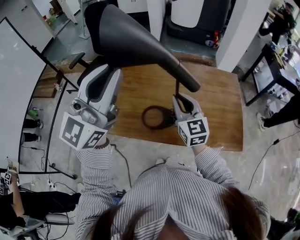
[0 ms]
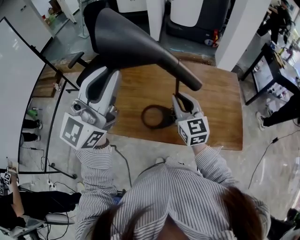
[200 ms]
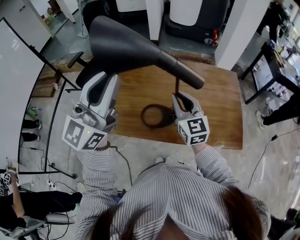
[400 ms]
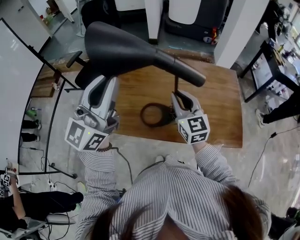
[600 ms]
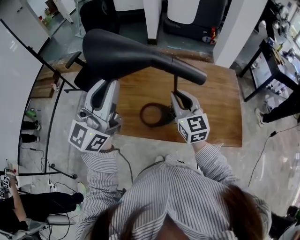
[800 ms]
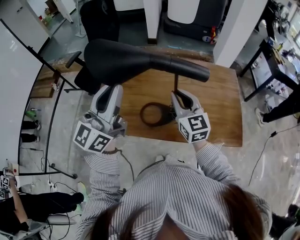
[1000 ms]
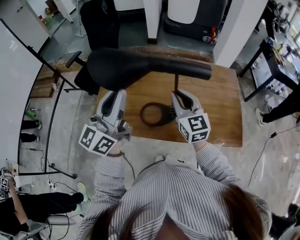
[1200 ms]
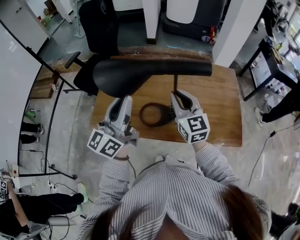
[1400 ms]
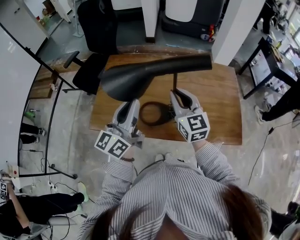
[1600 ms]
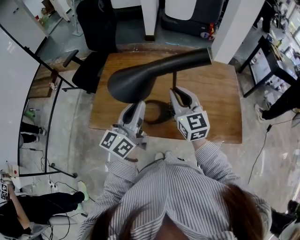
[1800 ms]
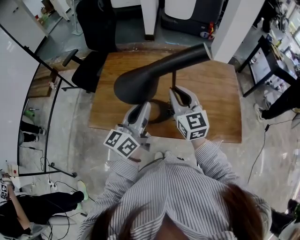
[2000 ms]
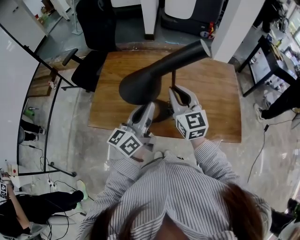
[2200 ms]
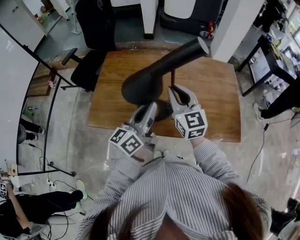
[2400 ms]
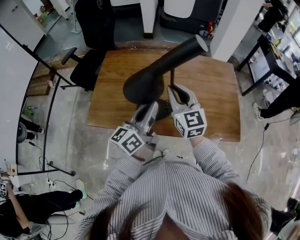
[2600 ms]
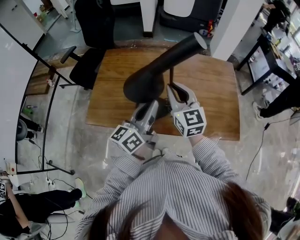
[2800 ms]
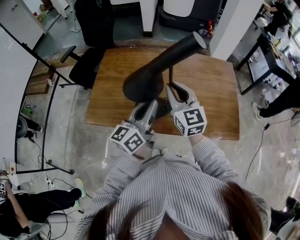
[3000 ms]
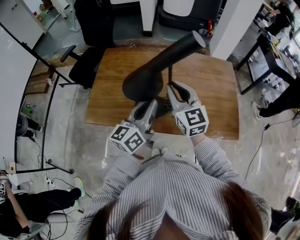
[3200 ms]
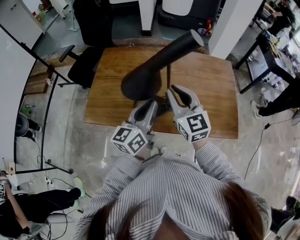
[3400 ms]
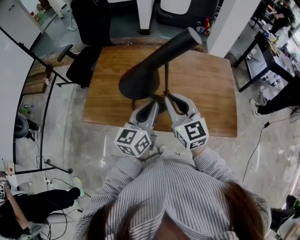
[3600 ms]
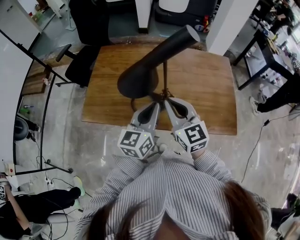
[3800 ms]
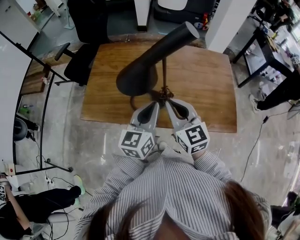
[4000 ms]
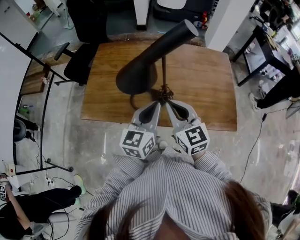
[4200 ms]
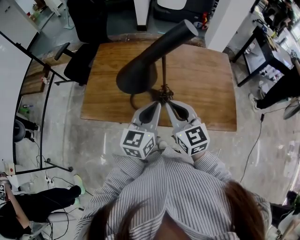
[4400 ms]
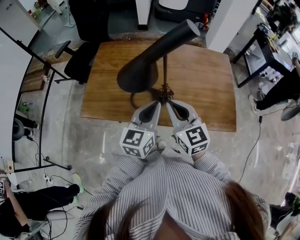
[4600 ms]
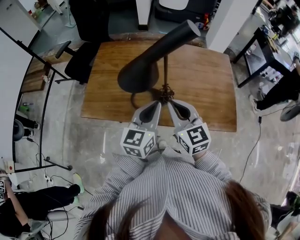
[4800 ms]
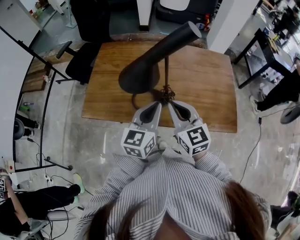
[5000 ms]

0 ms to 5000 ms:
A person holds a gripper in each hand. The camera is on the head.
0 ms to 1600 ms: The left gripper heads downward, covering about 20 cm, and changes its angle by roughly 40 degrees.
1600 ms to 3400 ms: The left gripper travels to the right and downward by roughly 10 cm.
3400 ms to 5000 ms: The right gripper heads backward, covering about 5 cm.

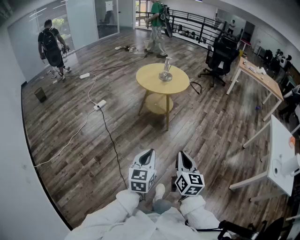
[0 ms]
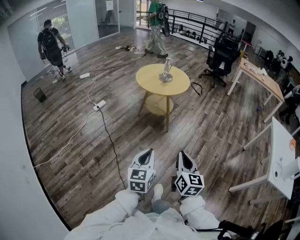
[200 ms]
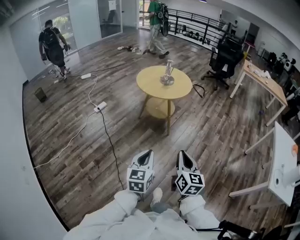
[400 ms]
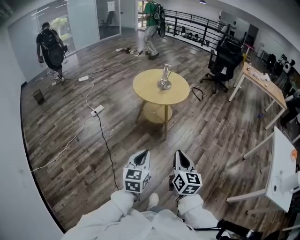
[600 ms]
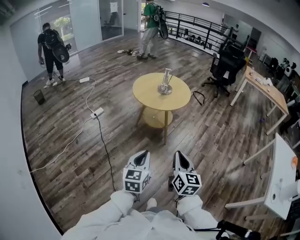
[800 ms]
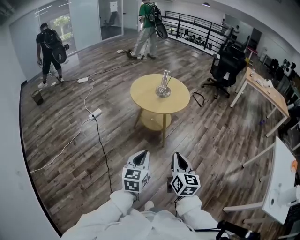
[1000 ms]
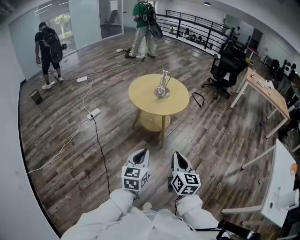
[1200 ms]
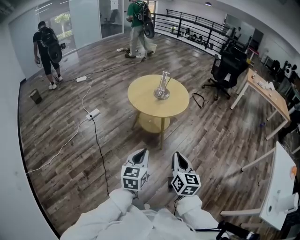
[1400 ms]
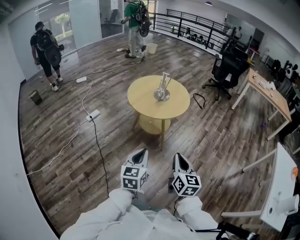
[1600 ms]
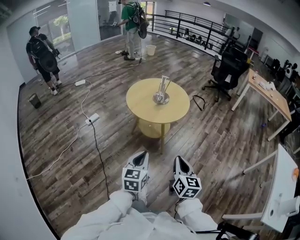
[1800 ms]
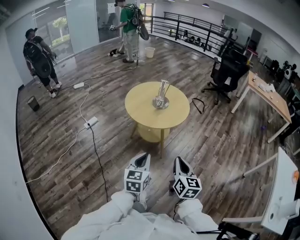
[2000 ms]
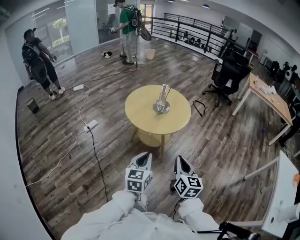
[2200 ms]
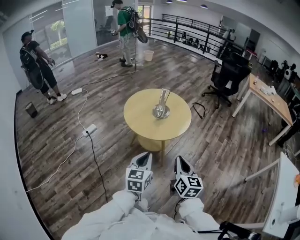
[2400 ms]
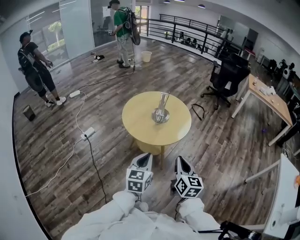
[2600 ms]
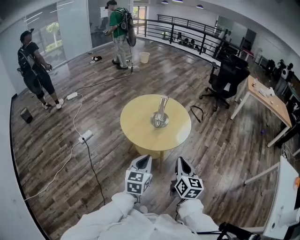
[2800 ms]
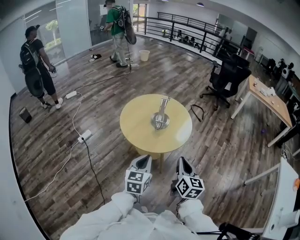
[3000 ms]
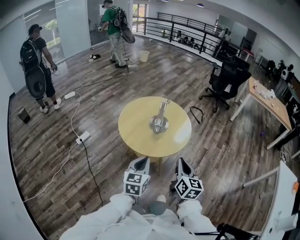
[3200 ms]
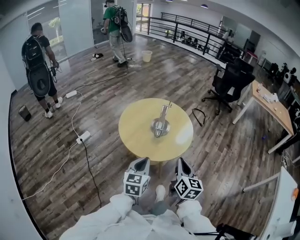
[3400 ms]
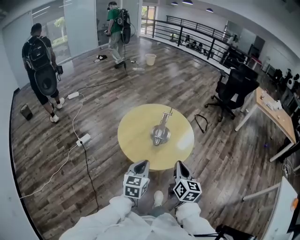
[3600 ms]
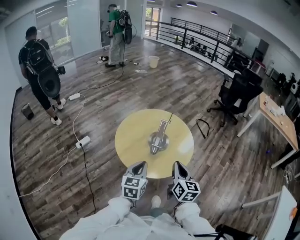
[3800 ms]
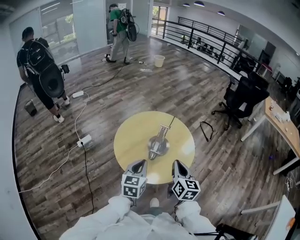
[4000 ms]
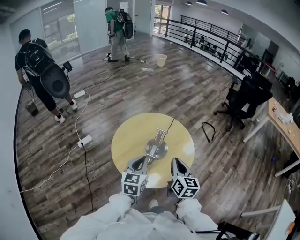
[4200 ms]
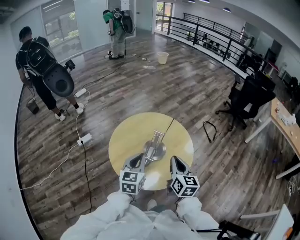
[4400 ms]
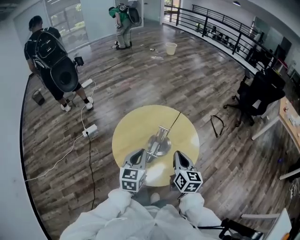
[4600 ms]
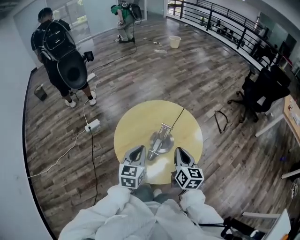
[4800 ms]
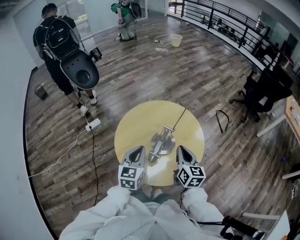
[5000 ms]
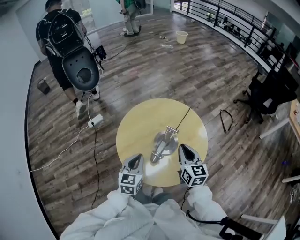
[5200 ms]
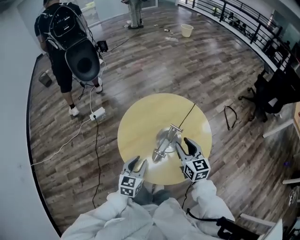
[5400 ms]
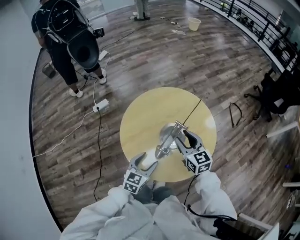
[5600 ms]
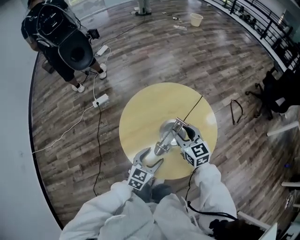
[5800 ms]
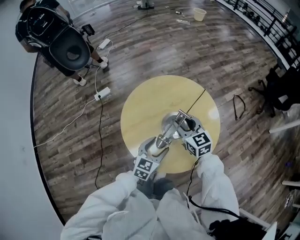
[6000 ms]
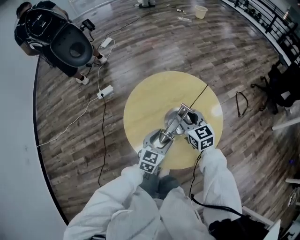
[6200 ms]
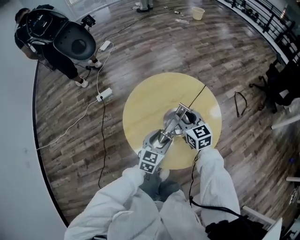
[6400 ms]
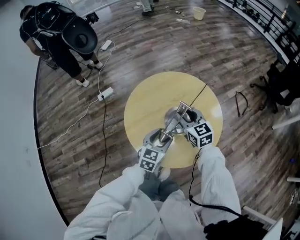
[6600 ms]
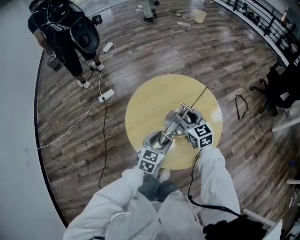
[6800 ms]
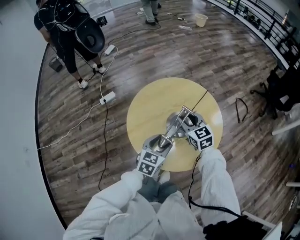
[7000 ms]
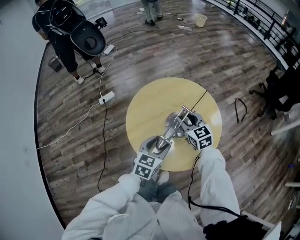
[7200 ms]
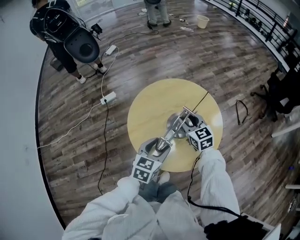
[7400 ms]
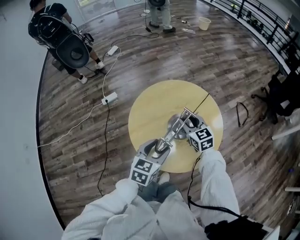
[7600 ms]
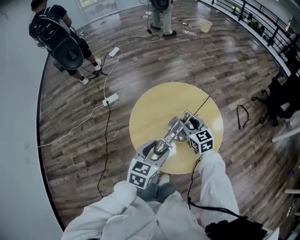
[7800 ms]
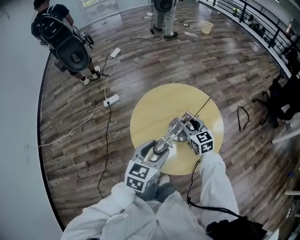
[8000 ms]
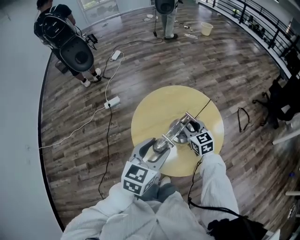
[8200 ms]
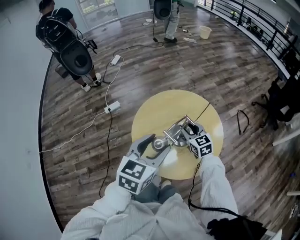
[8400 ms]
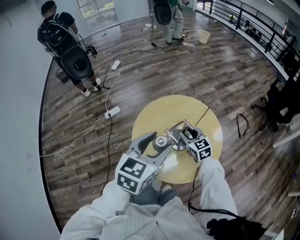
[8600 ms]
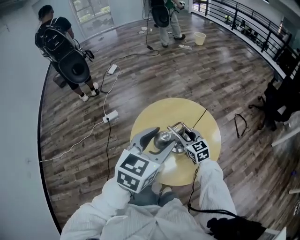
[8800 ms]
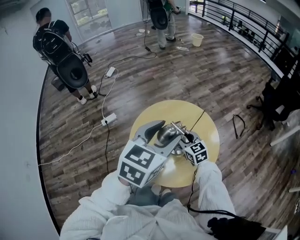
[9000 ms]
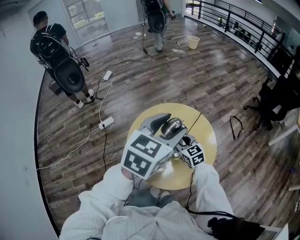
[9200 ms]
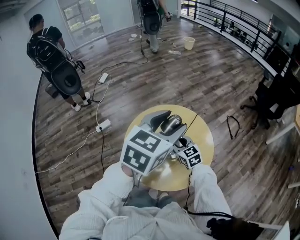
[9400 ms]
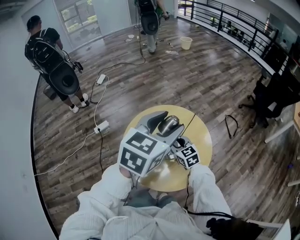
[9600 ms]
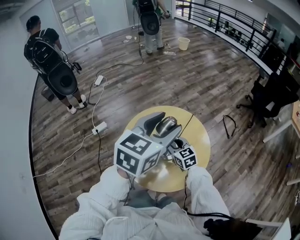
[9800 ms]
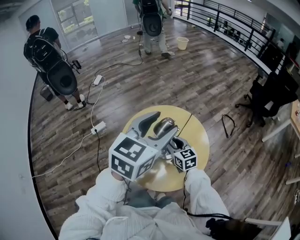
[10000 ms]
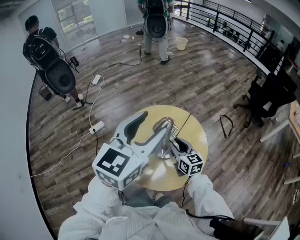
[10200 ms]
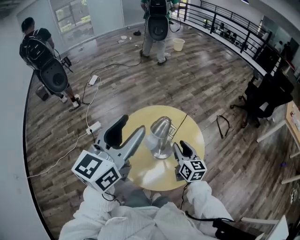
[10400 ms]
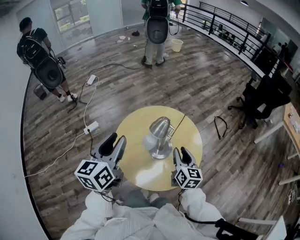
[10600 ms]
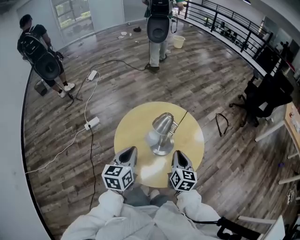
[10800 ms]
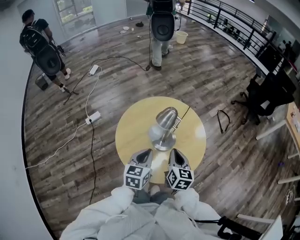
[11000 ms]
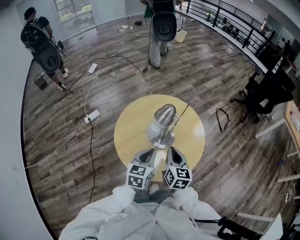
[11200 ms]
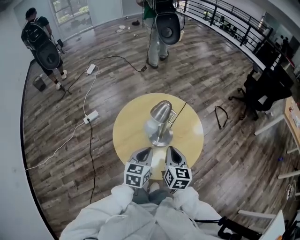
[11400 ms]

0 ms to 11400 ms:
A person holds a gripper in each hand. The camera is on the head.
0 ms to 1400 ms: Both grippers move forward, about 30 cm.
1400 ms to 2800 ms: The grippers both shift forward by about 25 cm.
2800 ms to 4200 ms: The two grippers go roughly 30 cm forward.
4200 ms to 5600 ms: The right gripper travels forward and downward by about 20 cm, rotates roughly 40 degrees, and opens; the left gripper heads downward, covering roughly 15 cm, and opens its fingers.
5600 ms to 7200 ms: The left gripper ends up approximately 5 cm from where it was.
7200 ms to 8600 ms: The left gripper is displaced upward by roughly 20 cm.
8600 ms to 10000 ms: The left gripper heads upward, to the right and forward, covering about 15 cm.
10000 ms to 11400 ms: The right gripper heads backward, covering about 10 cm, changes its angle by about 30 degrees, and closes up. The left gripper shifts about 25 cm downward, turns by about 20 degrees, and closes.

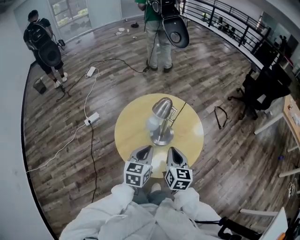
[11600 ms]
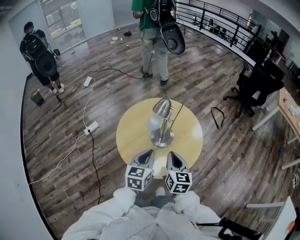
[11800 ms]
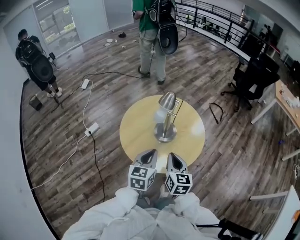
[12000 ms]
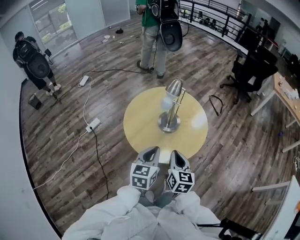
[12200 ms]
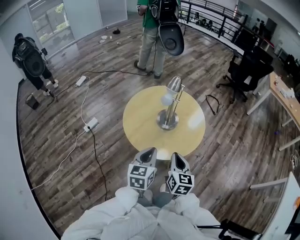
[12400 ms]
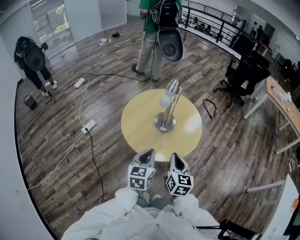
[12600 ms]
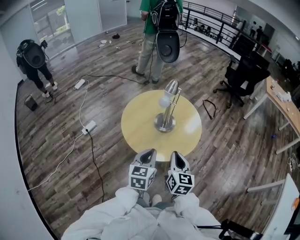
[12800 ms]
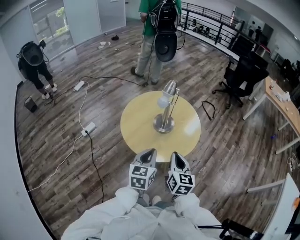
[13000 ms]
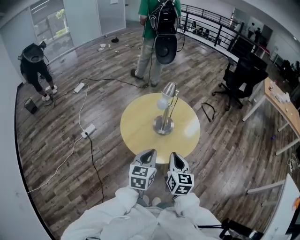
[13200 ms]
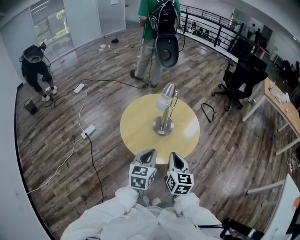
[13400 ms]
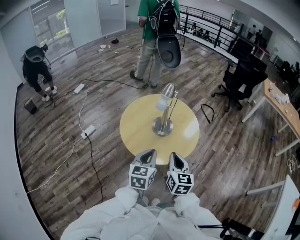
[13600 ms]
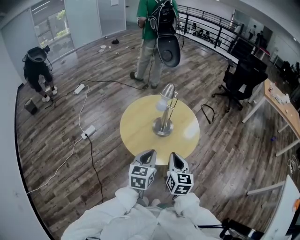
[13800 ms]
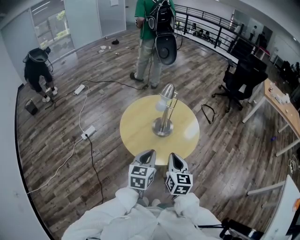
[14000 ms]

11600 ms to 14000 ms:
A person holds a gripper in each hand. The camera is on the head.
11600 ms to 12800 ms: Both grippers travel together backward, roughly 15 cm.
12800 ms to 14000 ms: The grippers stay close to where they were, moving slightly.

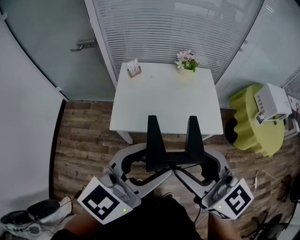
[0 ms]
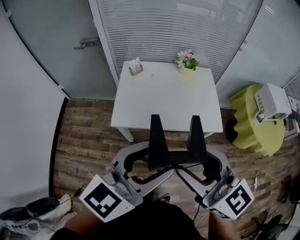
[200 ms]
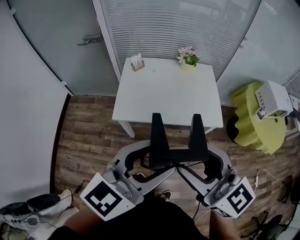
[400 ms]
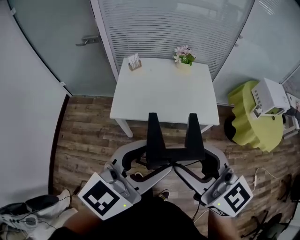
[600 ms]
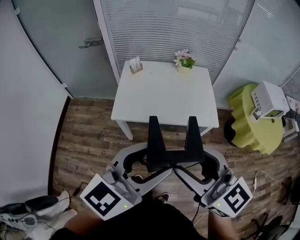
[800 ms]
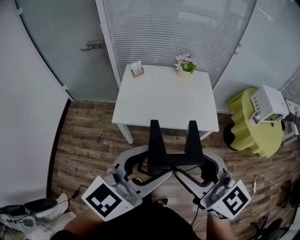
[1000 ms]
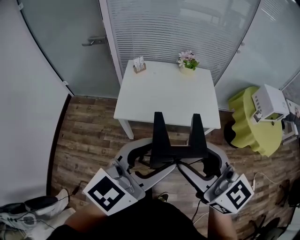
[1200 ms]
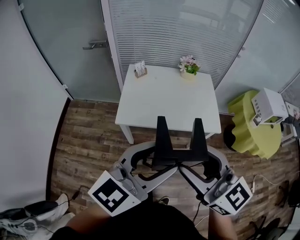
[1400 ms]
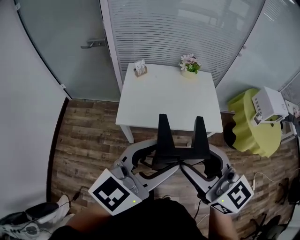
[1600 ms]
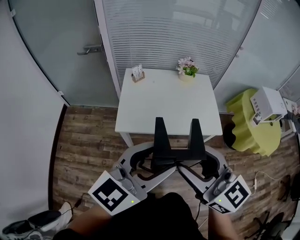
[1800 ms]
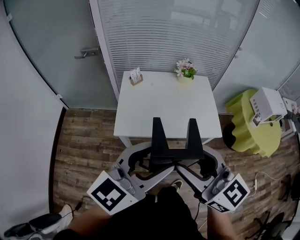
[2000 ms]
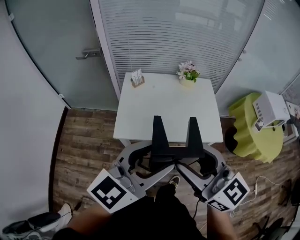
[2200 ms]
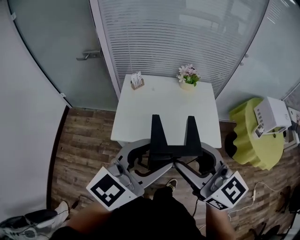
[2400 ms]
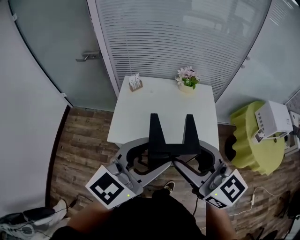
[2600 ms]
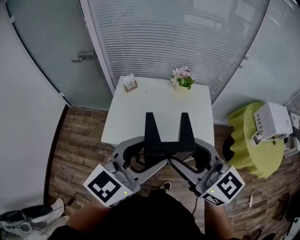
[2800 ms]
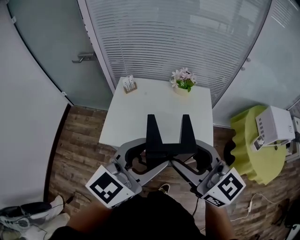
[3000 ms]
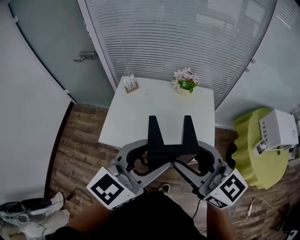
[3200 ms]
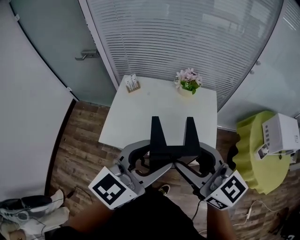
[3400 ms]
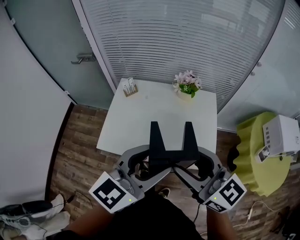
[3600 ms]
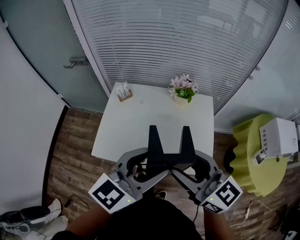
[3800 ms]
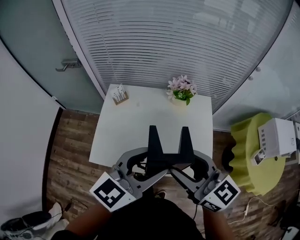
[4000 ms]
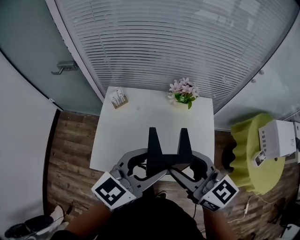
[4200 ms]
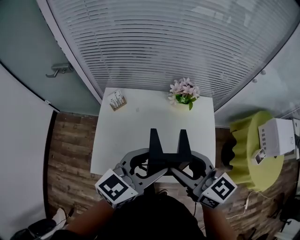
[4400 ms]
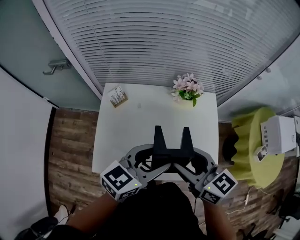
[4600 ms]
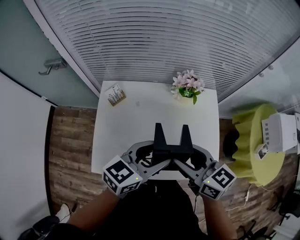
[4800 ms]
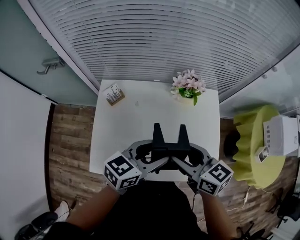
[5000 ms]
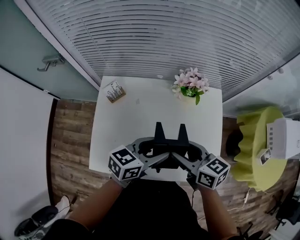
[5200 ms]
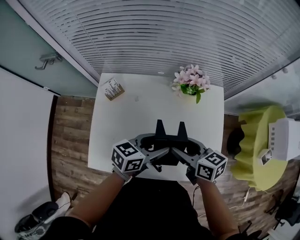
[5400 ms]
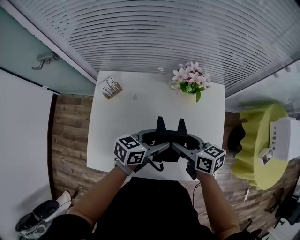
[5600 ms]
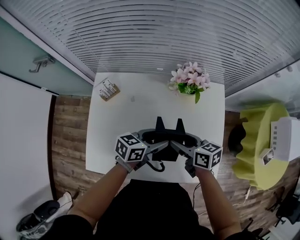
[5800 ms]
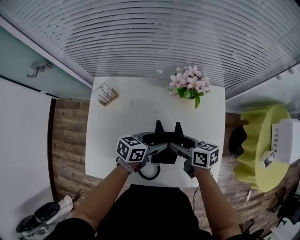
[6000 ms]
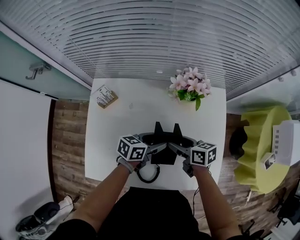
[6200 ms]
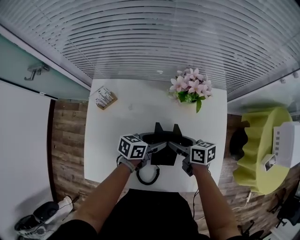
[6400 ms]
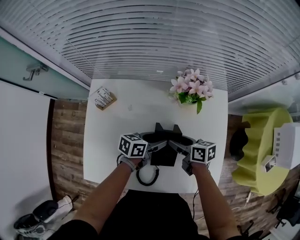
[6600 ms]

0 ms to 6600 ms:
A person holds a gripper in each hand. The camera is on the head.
0 ms to 1600 ms: The two grippers go approximately 5 cm backward.
1600 ms to 3200 ms: Both grippers move forward and to the right, about 25 cm.
3200 ms to 5000 ms: Both grippers move forward and downward, some 30 cm. The left gripper changes its angle by approximately 30 degrees, while the right gripper turns by some 30 degrees.
5000 ms to 6600 ms: Both grippers travel together downward, about 25 cm. The left gripper changes its angle by approximately 30 degrees, while the right gripper changes its angle by some 30 degrees.
